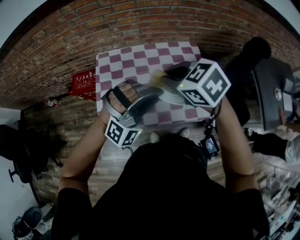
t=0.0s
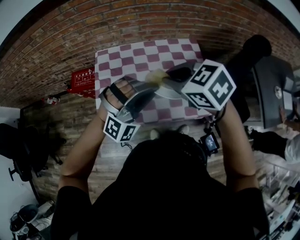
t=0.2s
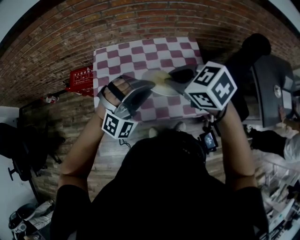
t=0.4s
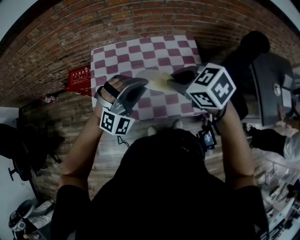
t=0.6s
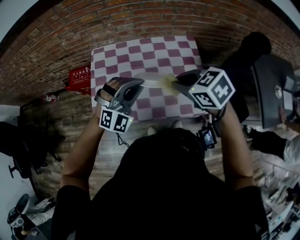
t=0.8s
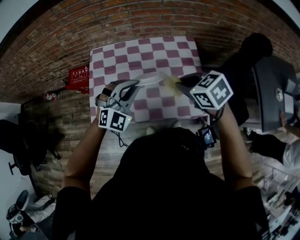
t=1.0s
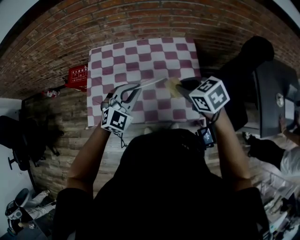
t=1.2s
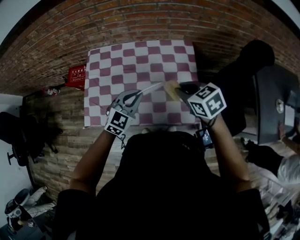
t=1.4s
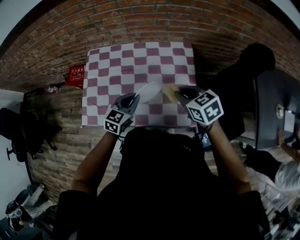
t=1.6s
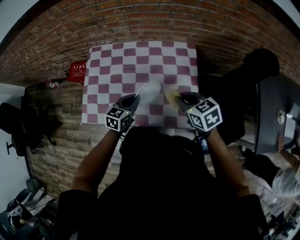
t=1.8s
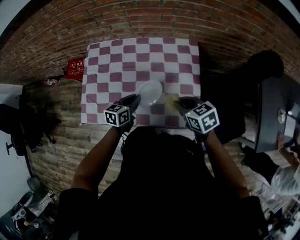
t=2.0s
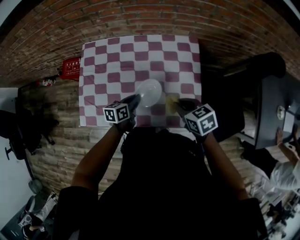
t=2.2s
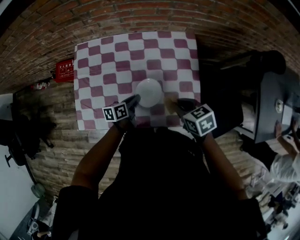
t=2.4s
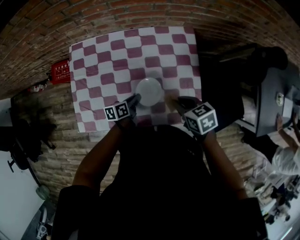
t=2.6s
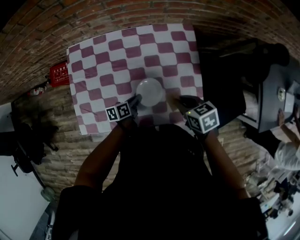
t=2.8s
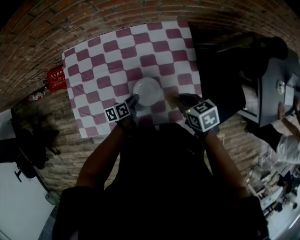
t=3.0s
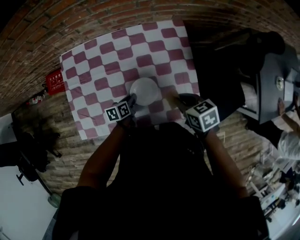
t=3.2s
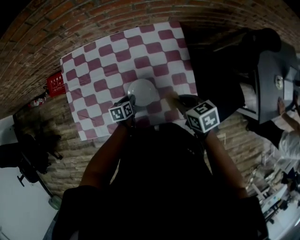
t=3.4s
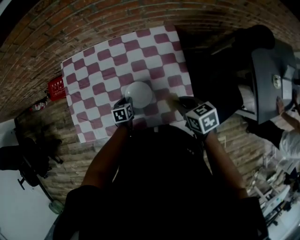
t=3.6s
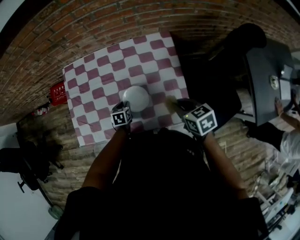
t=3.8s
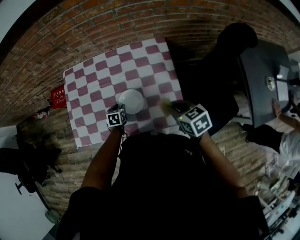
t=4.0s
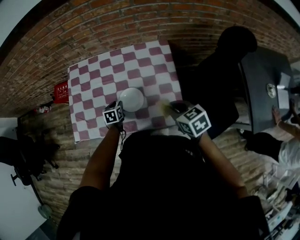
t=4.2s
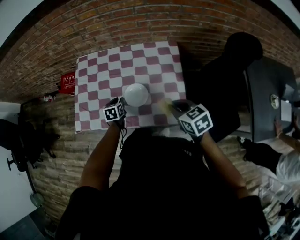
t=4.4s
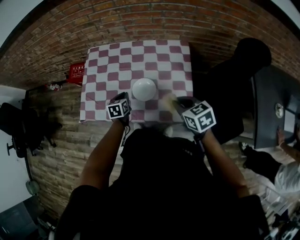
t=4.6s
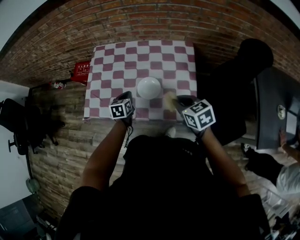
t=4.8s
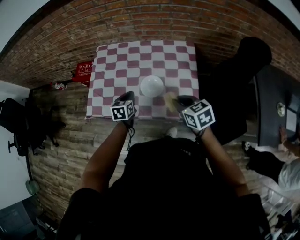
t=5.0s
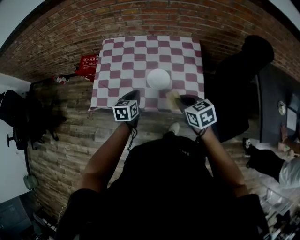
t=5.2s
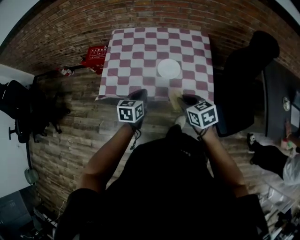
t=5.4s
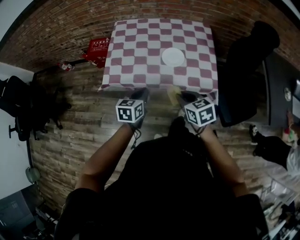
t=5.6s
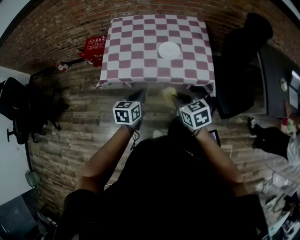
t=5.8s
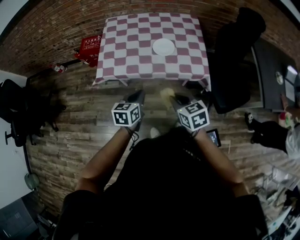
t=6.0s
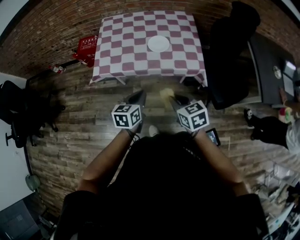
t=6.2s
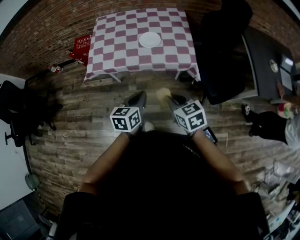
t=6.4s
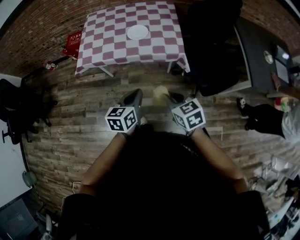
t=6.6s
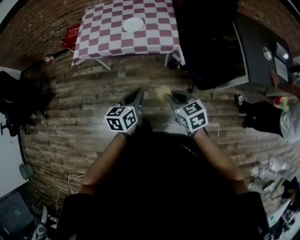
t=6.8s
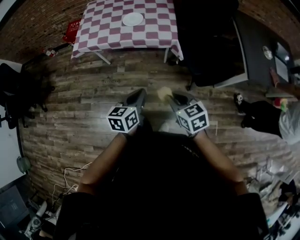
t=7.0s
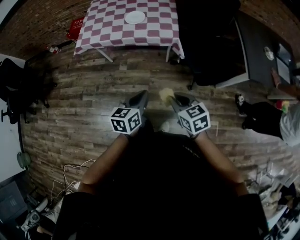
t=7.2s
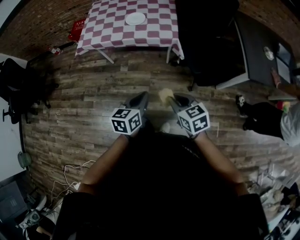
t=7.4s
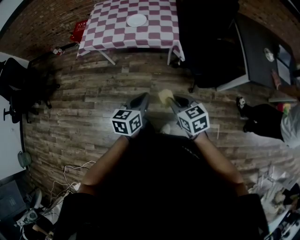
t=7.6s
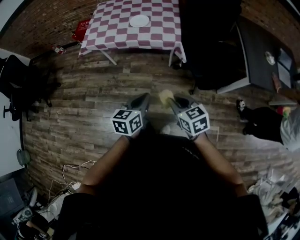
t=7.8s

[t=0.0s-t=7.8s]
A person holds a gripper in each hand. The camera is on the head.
t=0.0s to t=1.6s: The left gripper moves downward, about 20 cm, and rolls counterclockwise, seen from behind, by roughly 80 degrees. The right gripper travels to the right and downward by some 25 cm.
t=1.6s to t=3.2s: The left gripper goes approximately 20 cm downward, and twists roughly 50 degrees counterclockwise, seen from behind, while the right gripper heads downward, covering some 10 cm, and swivels roughly 30 degrees.
t=3.2s to t=4.6s: The left gripper goes some 10 cm upward, swivels approximately 30 degrees, and opens, then closes once more. Meanwhile the right gripper travels backward and upward by about 10 cm, and swivels approximately 20 degrees.
t=4.6s to t=6.2s: The right gripper shifts approximately 35 cm backward and to the left, while the left gripper moves backward, approximately 35 cm, and changes its angle by roughly 20 degrees.
t=6.2s to t=7.8s: The two grippers go some 30 cm backward and to the right.

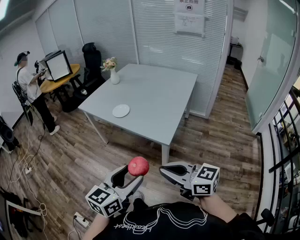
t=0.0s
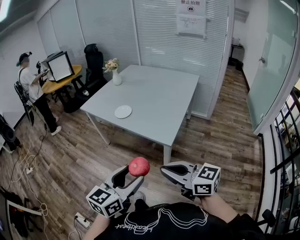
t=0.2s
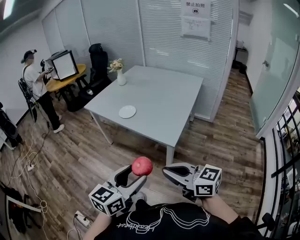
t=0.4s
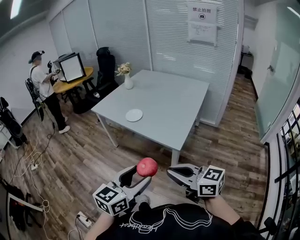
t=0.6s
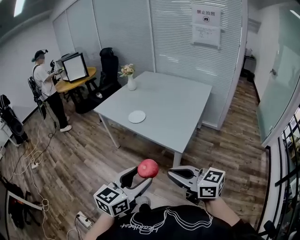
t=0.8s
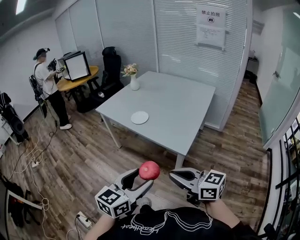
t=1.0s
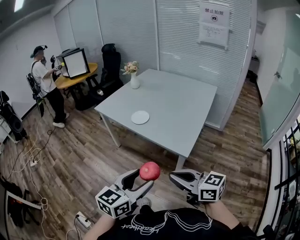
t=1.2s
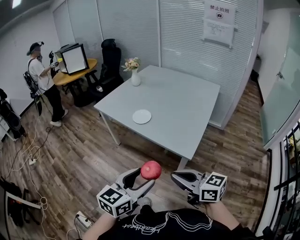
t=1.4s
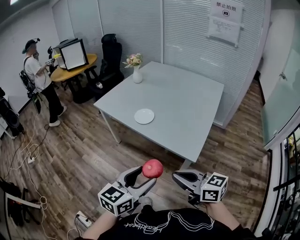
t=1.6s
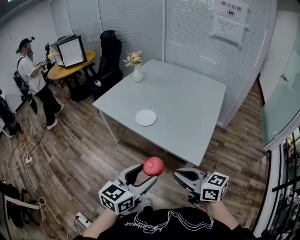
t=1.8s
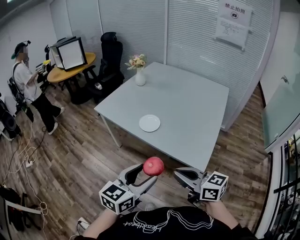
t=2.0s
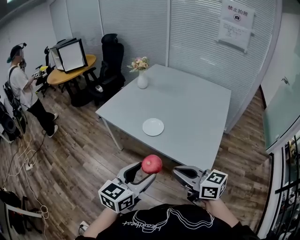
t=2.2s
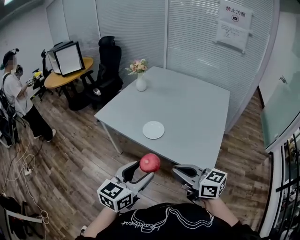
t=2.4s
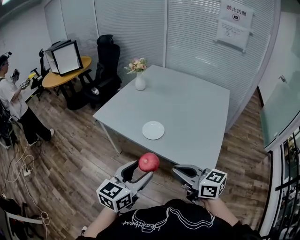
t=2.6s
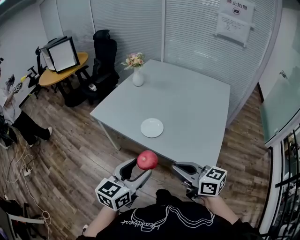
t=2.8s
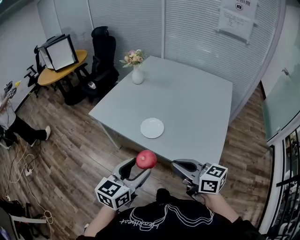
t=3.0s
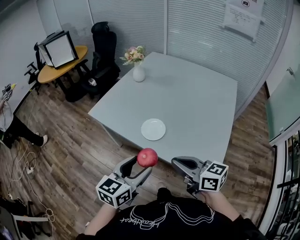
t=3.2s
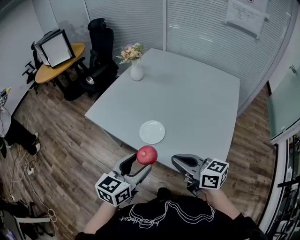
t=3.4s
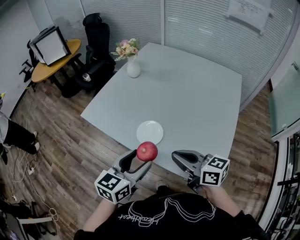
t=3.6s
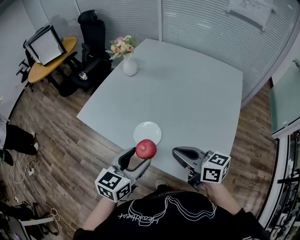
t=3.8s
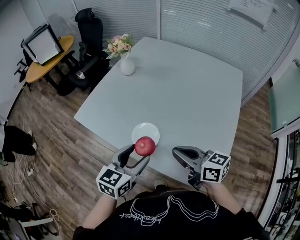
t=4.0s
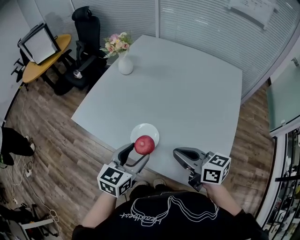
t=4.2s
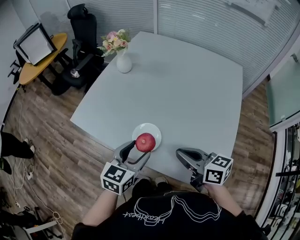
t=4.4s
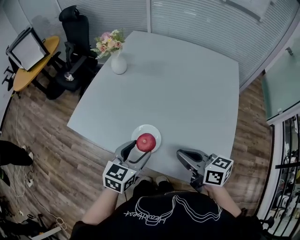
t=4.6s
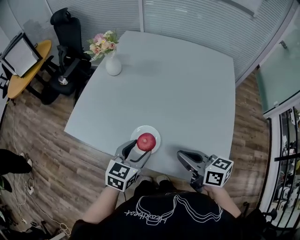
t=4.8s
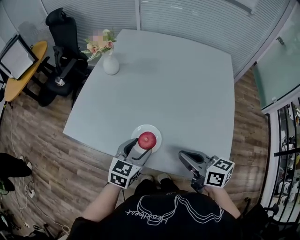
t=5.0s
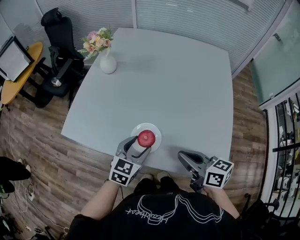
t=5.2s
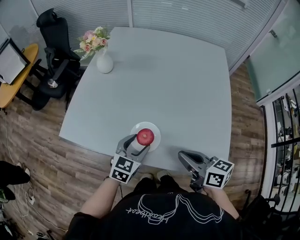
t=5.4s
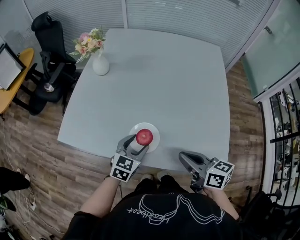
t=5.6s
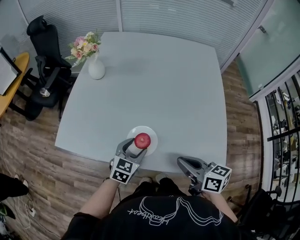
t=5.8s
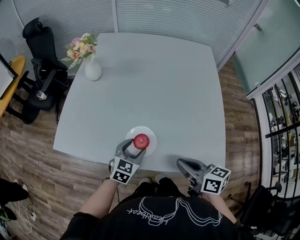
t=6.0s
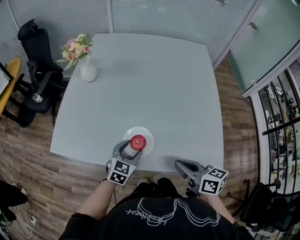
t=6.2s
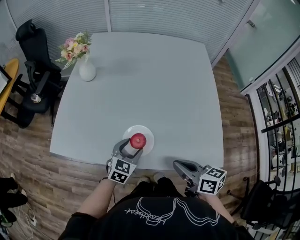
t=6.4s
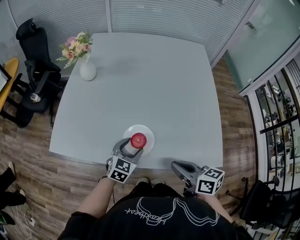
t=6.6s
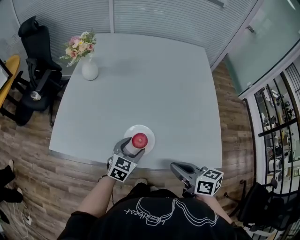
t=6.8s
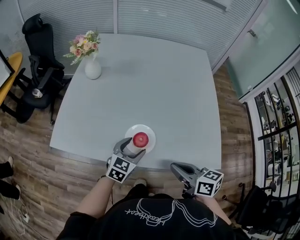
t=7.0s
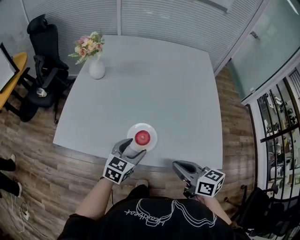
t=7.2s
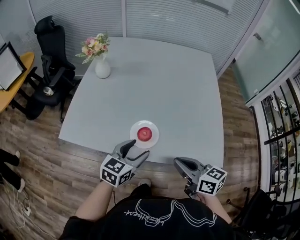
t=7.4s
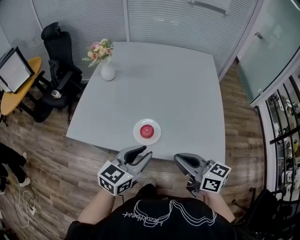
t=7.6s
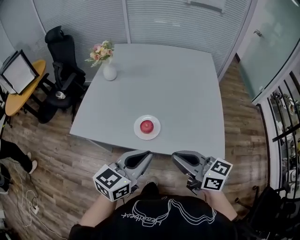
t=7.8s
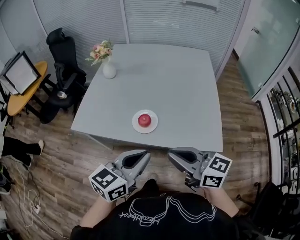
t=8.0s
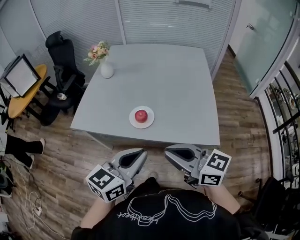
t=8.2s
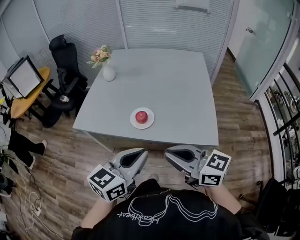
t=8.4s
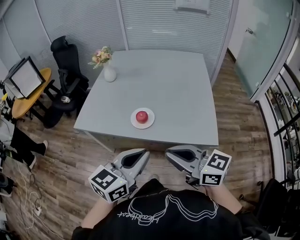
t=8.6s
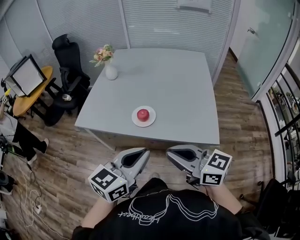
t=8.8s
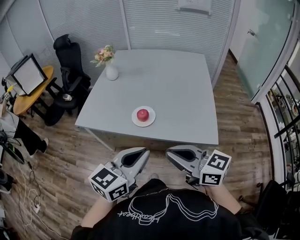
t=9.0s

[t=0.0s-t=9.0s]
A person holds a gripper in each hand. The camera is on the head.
t=0.0s to t=1.6s: Both grippers travel together forward and to the left, approximately 15 cm.
t=1.6s to t=3.0s: The grippers both shift forward by roughly 25 cm.
t=3.0s to t=4.4s: The two grippers go approximately 20 cm forward.
t=4.4s to t=6.0s: The left gripper goes approximately 15 cm downward, and changes its angle by approximately 30 degrees. Meanwhile the right gripper changes place by roughly 5 cm, and swivels about 30 degrees.
t=6.0s to t=7.6s: The right gripper shifts roughly 10 cm upward and backward. The left gripper goes roughly 20 cm upward and backward, turns by some 20 degrees, and closes.
t=7.6s to t=9.0s: Both grippers move backward and upward, approximately 20 cm. The left gripper closes up.

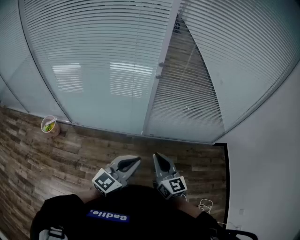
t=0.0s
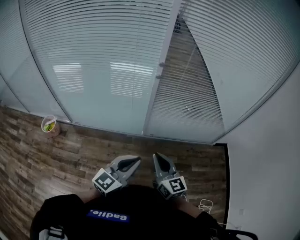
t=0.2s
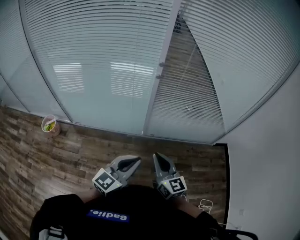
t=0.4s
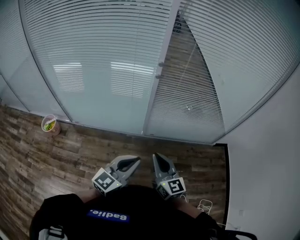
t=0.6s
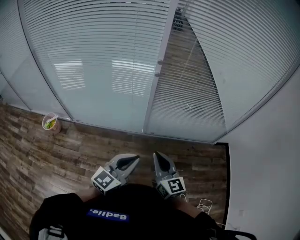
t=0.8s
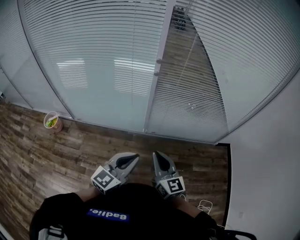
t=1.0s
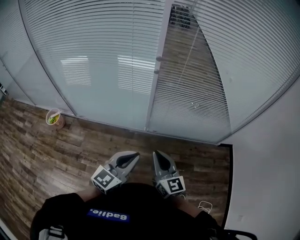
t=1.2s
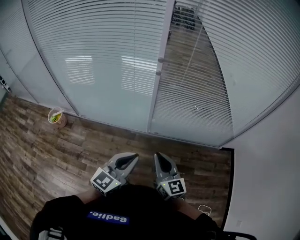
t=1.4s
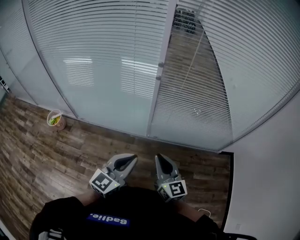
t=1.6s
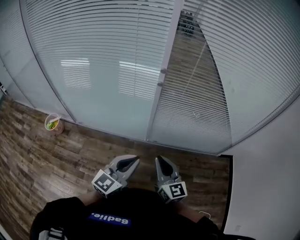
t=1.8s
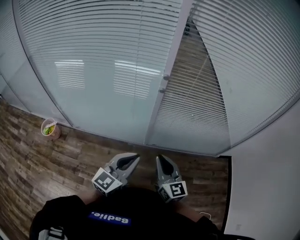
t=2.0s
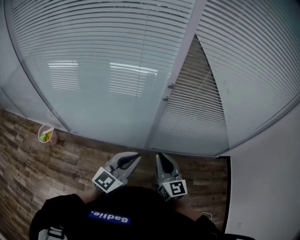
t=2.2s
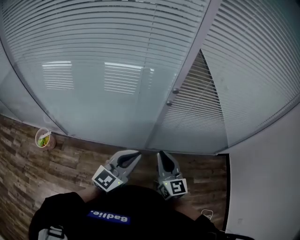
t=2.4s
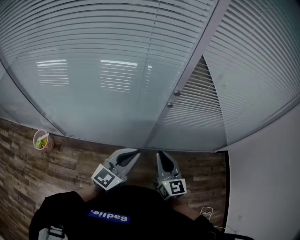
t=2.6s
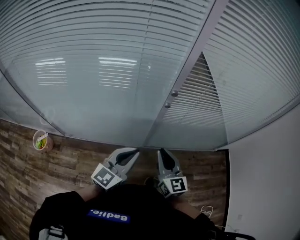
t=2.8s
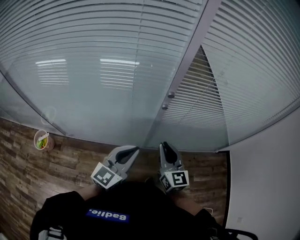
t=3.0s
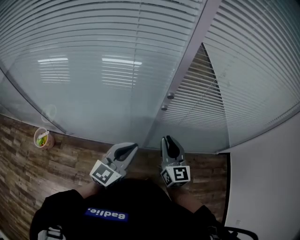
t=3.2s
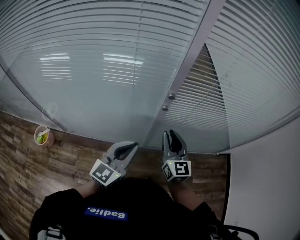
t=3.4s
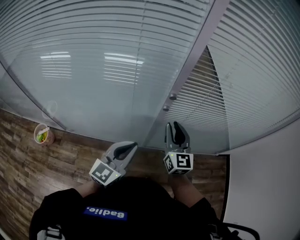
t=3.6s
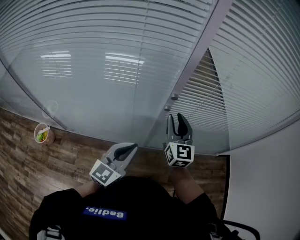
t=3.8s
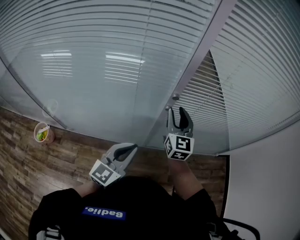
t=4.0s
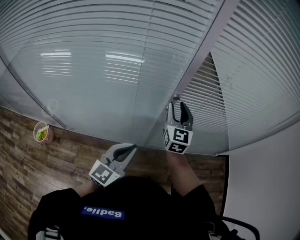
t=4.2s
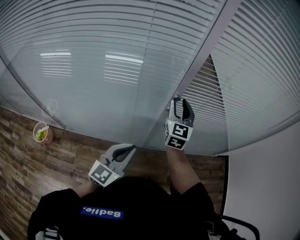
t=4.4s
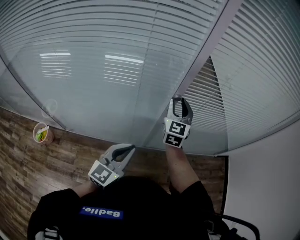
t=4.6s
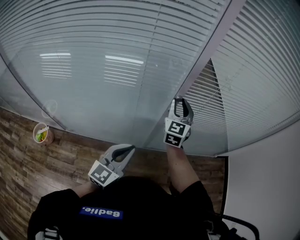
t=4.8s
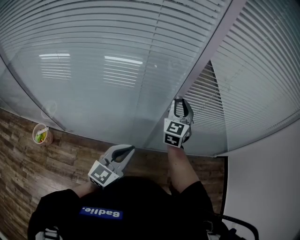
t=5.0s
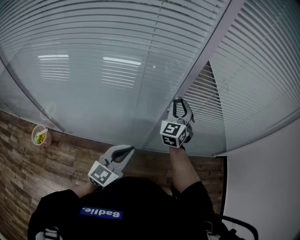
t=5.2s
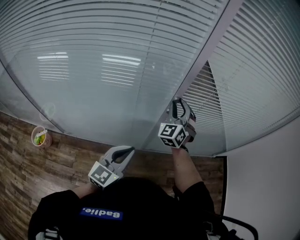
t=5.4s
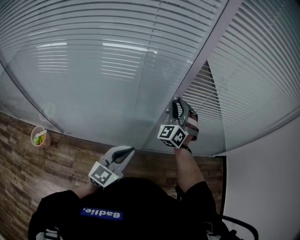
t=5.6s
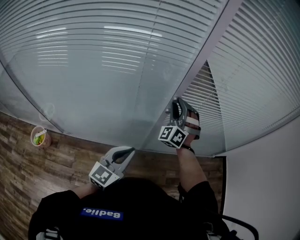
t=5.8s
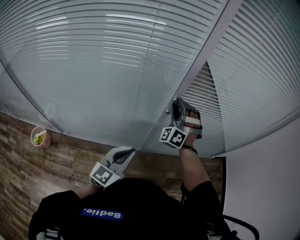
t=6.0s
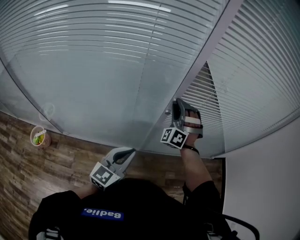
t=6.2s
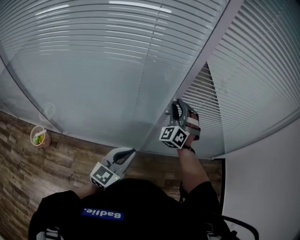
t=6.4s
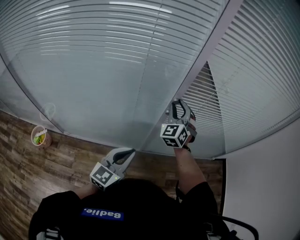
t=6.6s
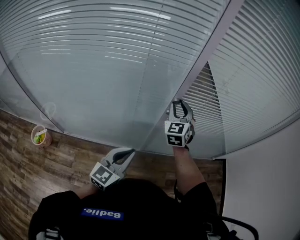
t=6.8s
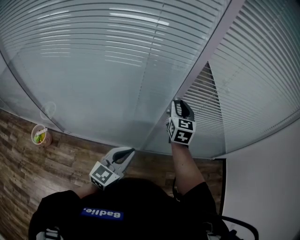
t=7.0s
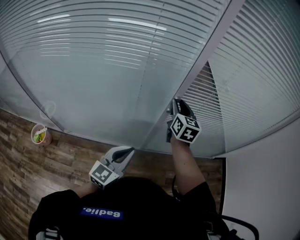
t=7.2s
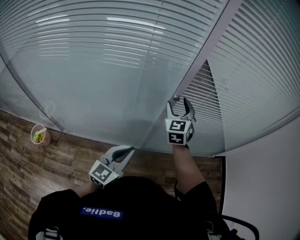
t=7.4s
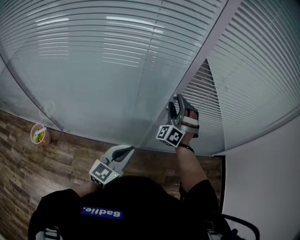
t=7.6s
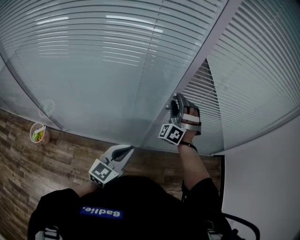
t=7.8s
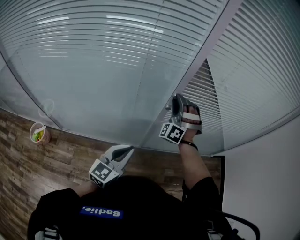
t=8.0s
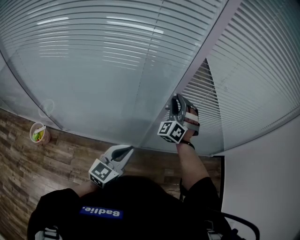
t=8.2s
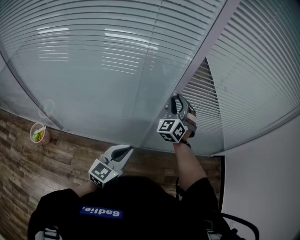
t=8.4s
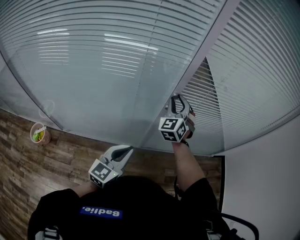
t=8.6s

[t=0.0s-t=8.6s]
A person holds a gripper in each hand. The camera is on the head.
t=0.0s to t=1.4s: The right gripper changes place by roughly 5 cm, while the left gripper ends up approximately 5 cm from where it was.
t=1.4s to t=2.8s: The grippers both shift forward and to the left by approximately 20 cm.
t=2.8s to t=4.4s: The right gripper heads forward, covering about 20 cm, swivels about 20 degrees, and opens.
t=4.4s to t=5.8s: The right gripper rolls counterclockwise, seen from behind, by about 60 degrees.
t=5.8s to t=7.2s: The right gripper twists about 80 degrees clockwise, seen from behind.
t=7.2s to t=8.6s: The right gripper twists roughly 50 degrees counterclockwise, seen from behind, and opens, then closes once more.
